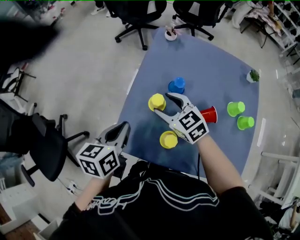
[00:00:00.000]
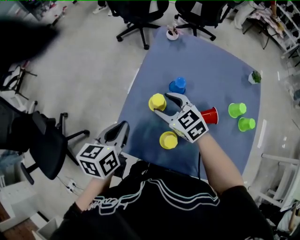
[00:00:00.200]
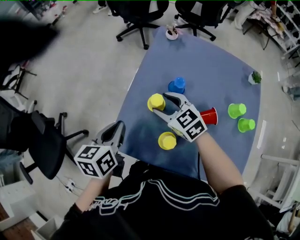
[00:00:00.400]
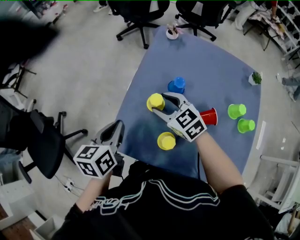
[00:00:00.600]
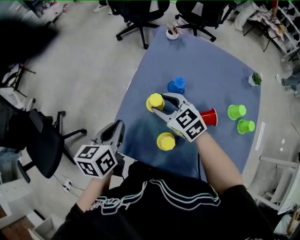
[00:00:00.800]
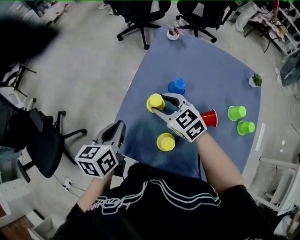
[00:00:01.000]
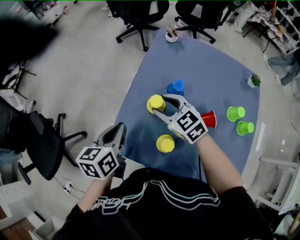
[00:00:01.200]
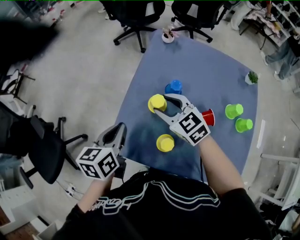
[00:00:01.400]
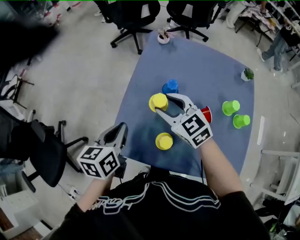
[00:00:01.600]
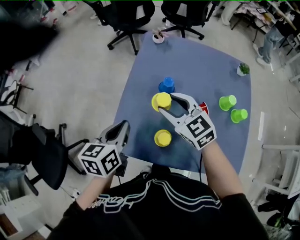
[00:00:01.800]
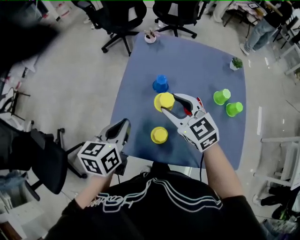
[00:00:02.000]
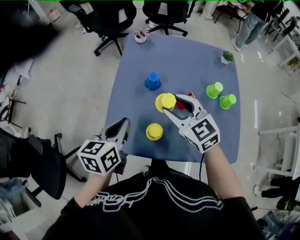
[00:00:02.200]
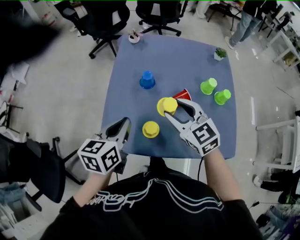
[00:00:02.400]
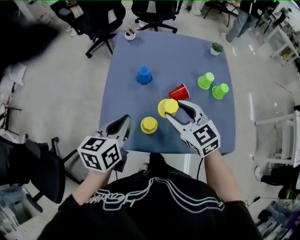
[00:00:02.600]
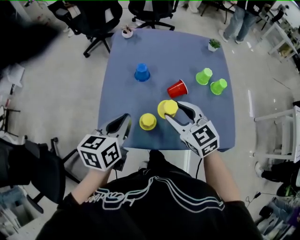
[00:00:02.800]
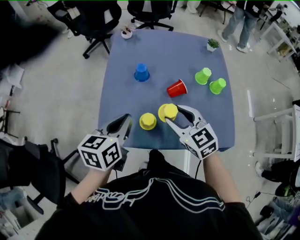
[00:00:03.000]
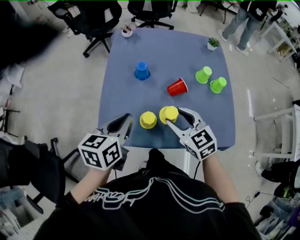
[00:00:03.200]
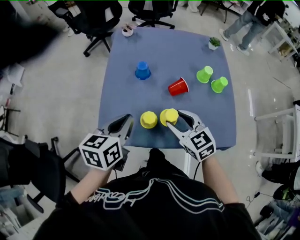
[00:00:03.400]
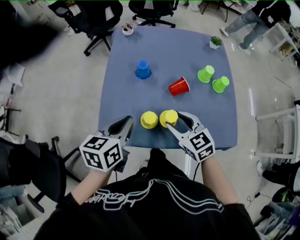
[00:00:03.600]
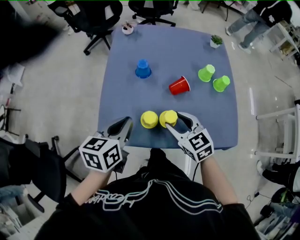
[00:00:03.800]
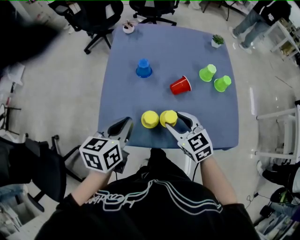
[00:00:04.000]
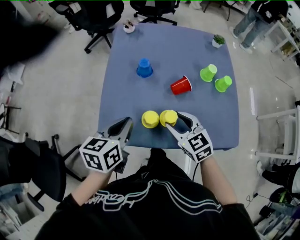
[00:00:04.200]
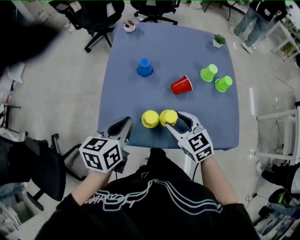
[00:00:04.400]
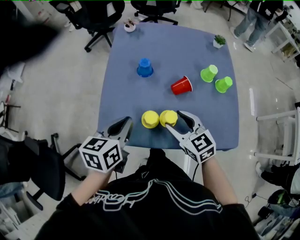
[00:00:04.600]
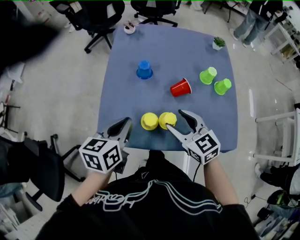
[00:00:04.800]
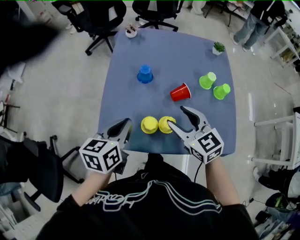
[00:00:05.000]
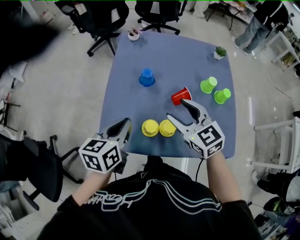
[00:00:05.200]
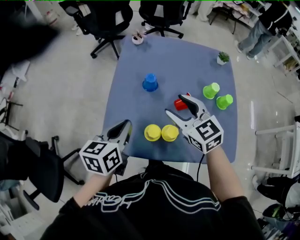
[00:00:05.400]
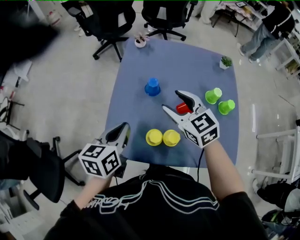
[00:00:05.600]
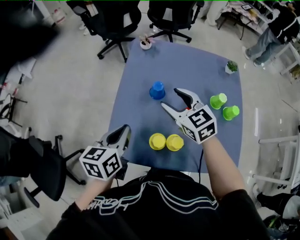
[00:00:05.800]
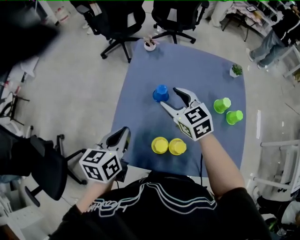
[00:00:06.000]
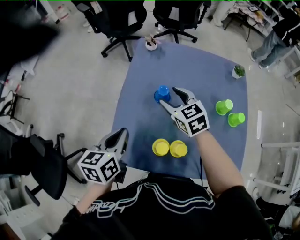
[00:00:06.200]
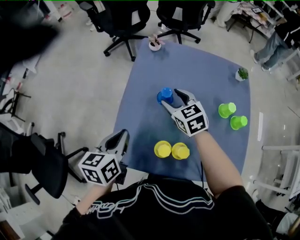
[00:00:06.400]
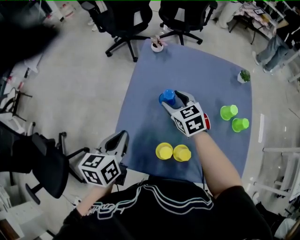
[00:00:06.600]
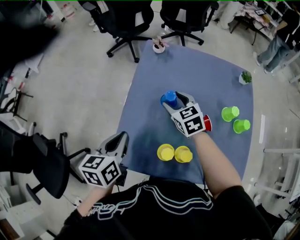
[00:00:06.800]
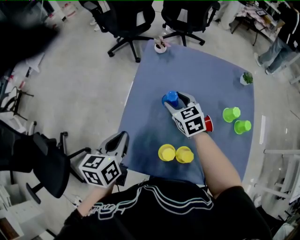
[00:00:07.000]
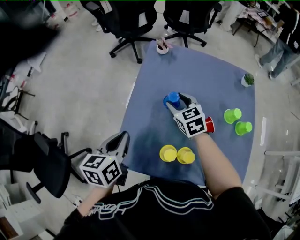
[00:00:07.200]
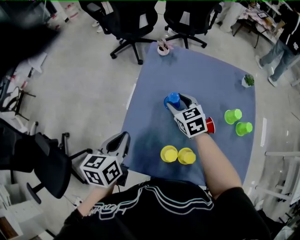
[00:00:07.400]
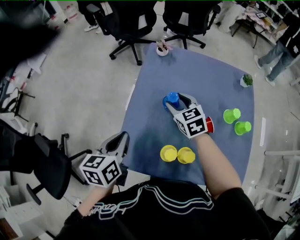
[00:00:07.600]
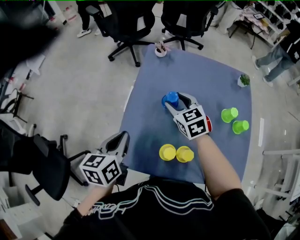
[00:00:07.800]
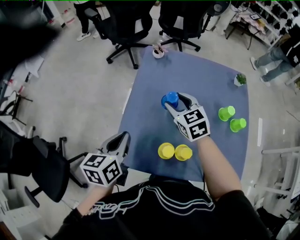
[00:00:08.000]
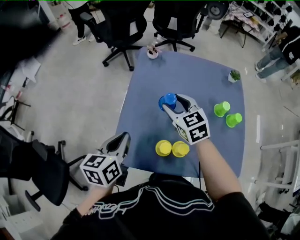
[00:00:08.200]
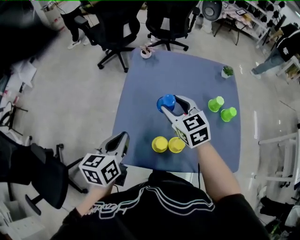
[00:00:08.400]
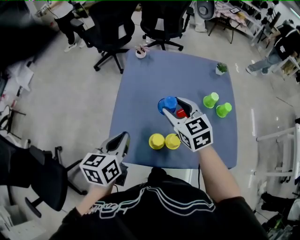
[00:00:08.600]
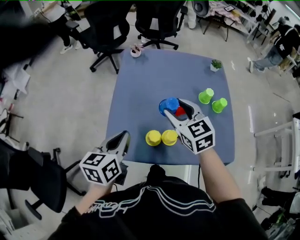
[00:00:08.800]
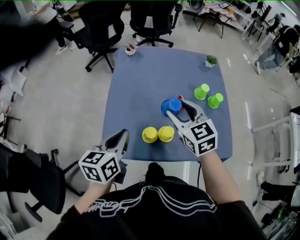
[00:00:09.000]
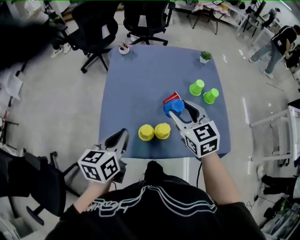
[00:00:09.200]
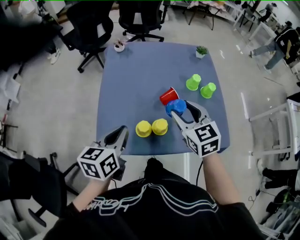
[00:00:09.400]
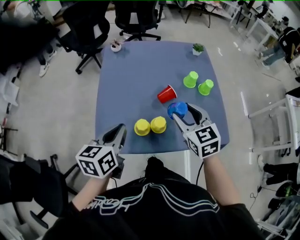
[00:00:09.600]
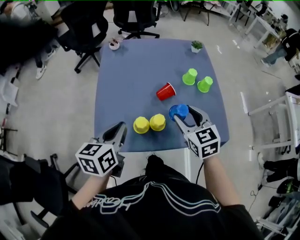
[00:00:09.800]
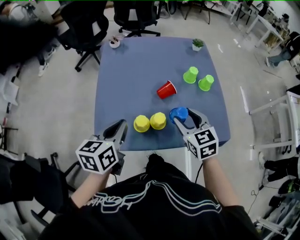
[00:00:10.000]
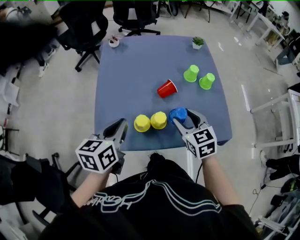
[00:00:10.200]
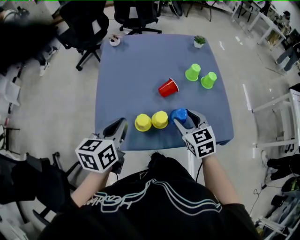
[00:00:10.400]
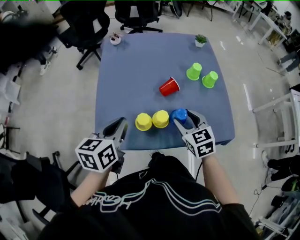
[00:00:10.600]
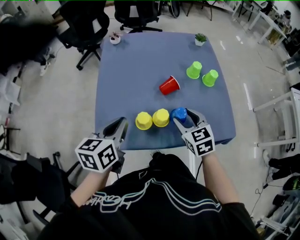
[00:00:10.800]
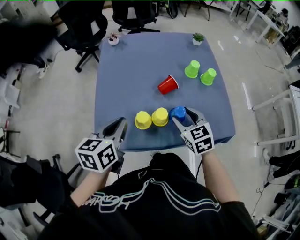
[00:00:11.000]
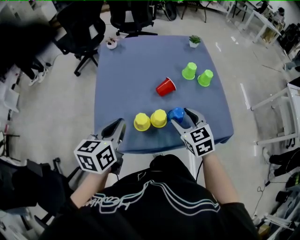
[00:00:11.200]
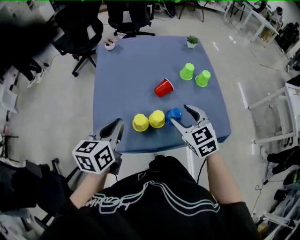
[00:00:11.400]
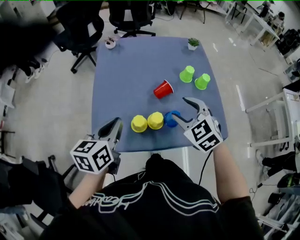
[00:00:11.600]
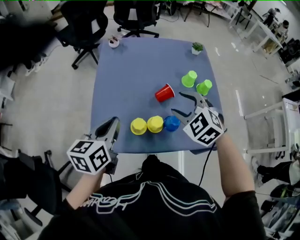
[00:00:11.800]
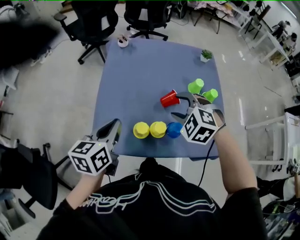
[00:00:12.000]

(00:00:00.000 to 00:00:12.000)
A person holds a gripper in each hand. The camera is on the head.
00:00:00.000 - 00:00:01.600: There are only small adjustments of the grippers.
00:00:01.600 - 00:00:03.000: The left gripper shifts about 10 cm to the right and backward, and turns by some 20 degrees. Meanwhile the right gripper heads backward and to the right, covering some 20 cm, and changes its angle by roughly 20 degrees.
00:00:03.000 - 00:00:04.400: The right gripper moves downward, roughly 5 cm.
00:00:04.400 - 00:00:06.000: The right gripper heads forward, covering some 20 cm. The left gripper is displaced forward and to the left by some 10 cm.
00:00:06.000 - 00:00:07.600: The right gripper shifts approximately 10 cm downward and forward.
00:00:07.600 - 00:00:09.000: The left gripper goes about 10 cm to the right and backward; the right gripper heads backward, upward and to the right, covering approximately 20 cm.
00:00:09.000 - 00:00:10.400: The right gripper travels downward, to the right and backward by some 15 cm.
00:00:10.400 - 00:00:12.000: The right gripper heads forward and upward, covering about 10 cm, and twists about 50 degrees counterclockwise, seen from behind.

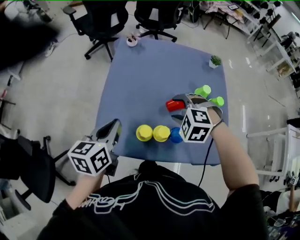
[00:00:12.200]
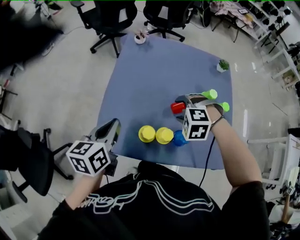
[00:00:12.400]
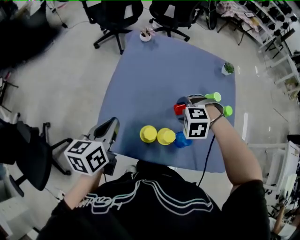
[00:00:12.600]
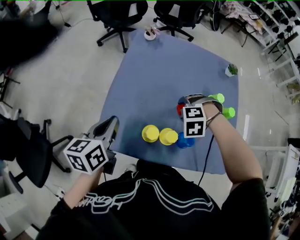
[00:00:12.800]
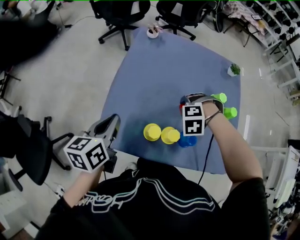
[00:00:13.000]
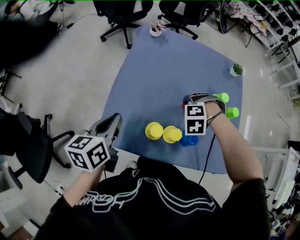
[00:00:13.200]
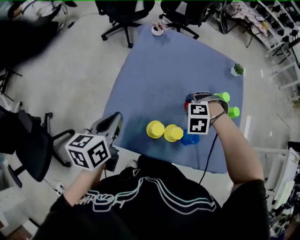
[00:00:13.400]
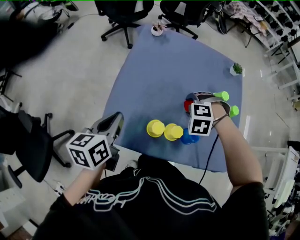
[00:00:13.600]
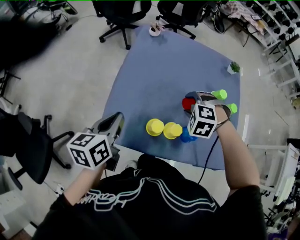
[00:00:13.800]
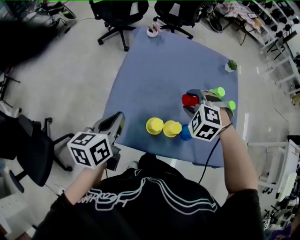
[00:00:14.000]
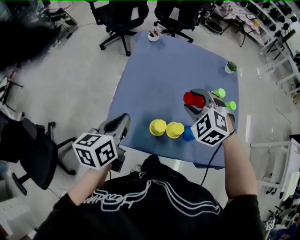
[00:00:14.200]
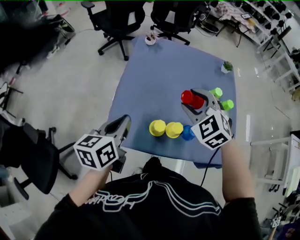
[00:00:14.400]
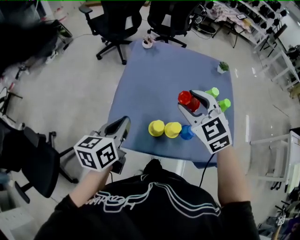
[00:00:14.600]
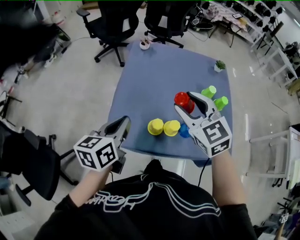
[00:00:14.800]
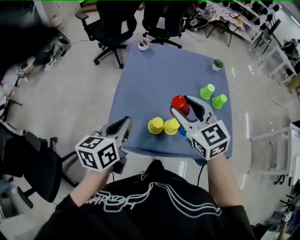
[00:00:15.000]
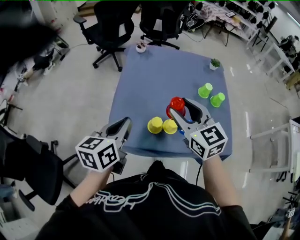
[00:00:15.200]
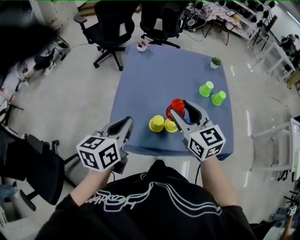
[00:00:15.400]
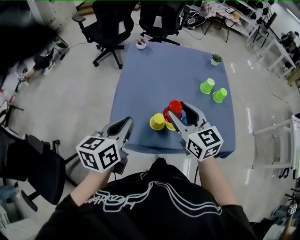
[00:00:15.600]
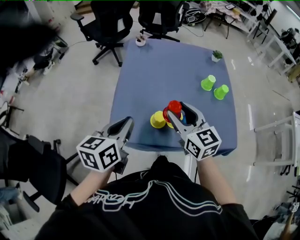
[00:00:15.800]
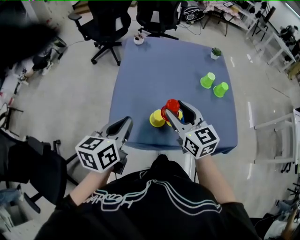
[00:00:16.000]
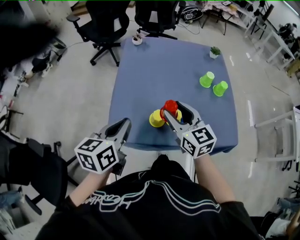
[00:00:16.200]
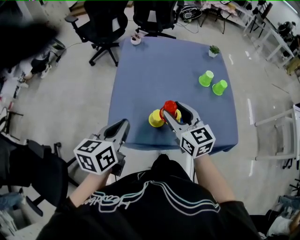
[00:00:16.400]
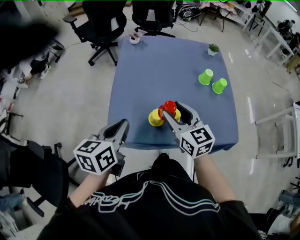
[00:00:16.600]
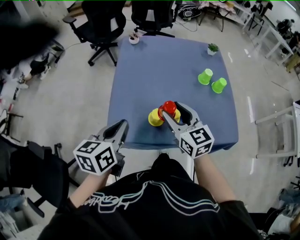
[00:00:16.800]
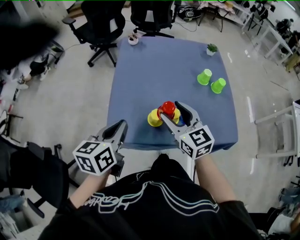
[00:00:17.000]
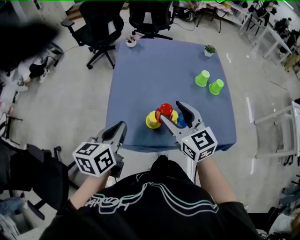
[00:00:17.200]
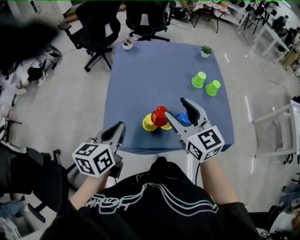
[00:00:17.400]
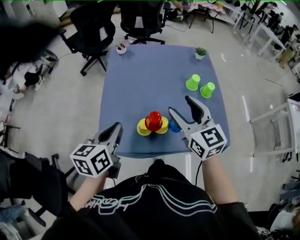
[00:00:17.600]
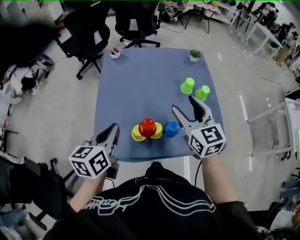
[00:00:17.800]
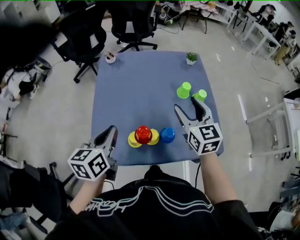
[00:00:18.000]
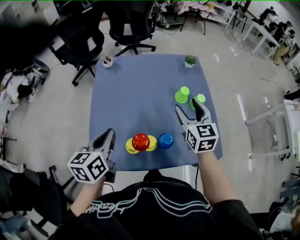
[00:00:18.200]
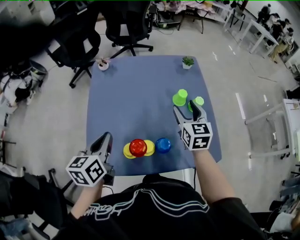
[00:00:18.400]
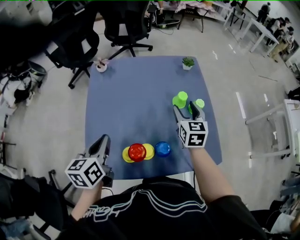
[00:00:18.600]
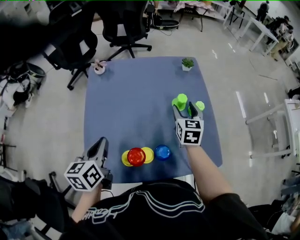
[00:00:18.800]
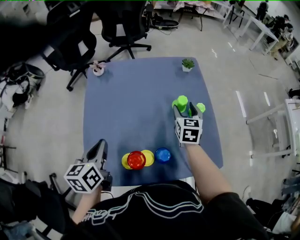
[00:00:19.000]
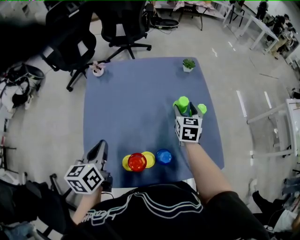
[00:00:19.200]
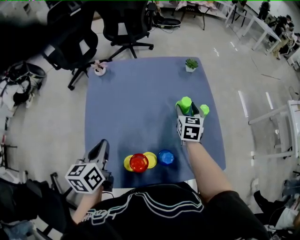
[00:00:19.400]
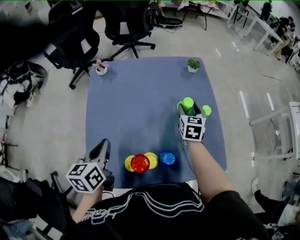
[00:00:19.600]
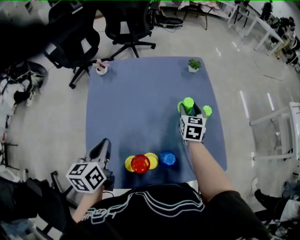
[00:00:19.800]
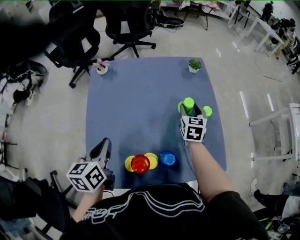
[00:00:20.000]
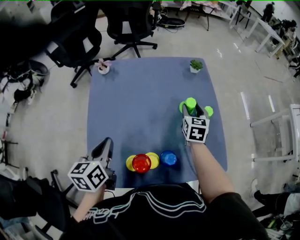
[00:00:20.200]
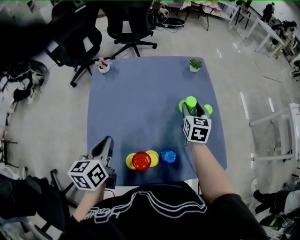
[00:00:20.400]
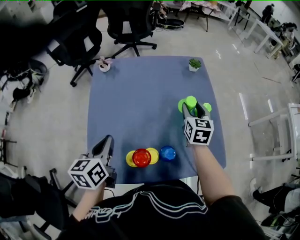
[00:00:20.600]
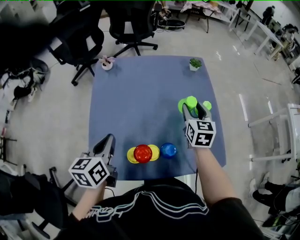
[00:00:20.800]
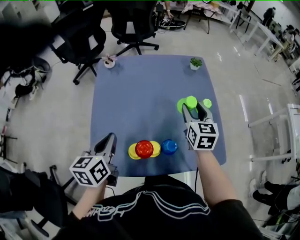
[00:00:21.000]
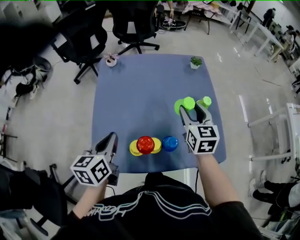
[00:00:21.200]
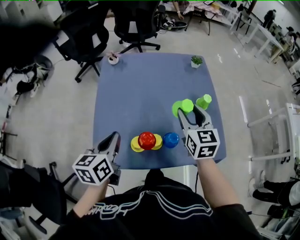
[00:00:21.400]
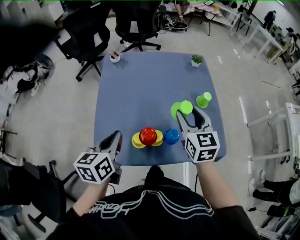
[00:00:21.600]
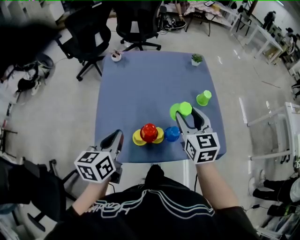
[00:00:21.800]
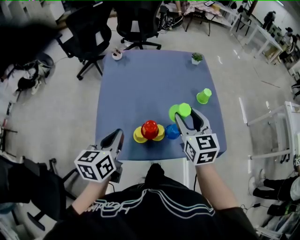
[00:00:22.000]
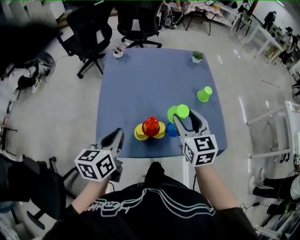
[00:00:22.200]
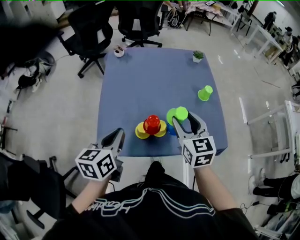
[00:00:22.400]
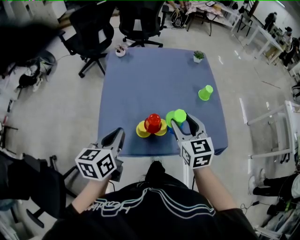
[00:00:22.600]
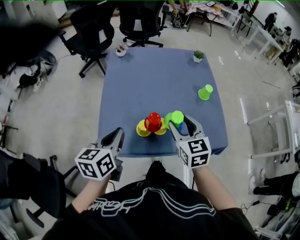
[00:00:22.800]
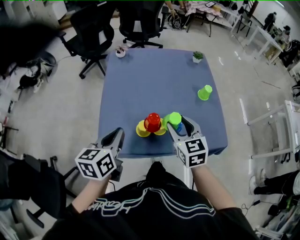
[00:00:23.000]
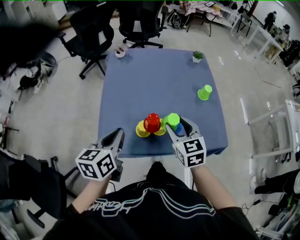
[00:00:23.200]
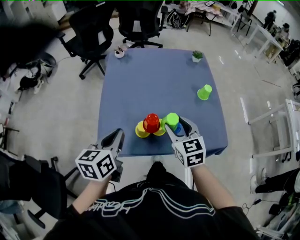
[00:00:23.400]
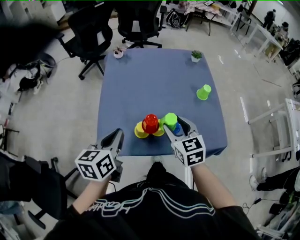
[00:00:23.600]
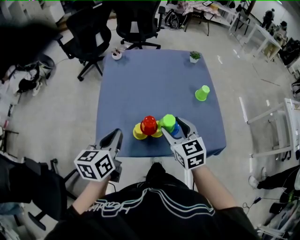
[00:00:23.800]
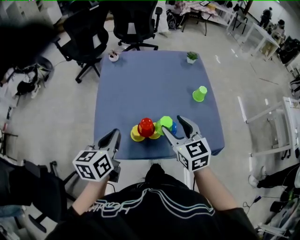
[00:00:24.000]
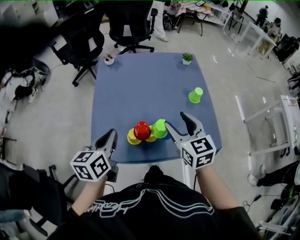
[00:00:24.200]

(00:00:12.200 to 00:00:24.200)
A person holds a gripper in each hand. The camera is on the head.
00:00:12.200 - 00:00:13.800: The left gripper changes place by some 5 cm.
00:00:13.800 - 00:00:15.200: The right gripper moves upward and backward, about 20 cm, and tips its fingers upward by roughly 50 degrees; the left gripper goes roughly 5 cm upward.
00:00:15.200 - 00:00:16.600: The right gripper heads downward, covering approximately 10 cm.
00:00:16.600 - 00:00:18.200: The right gripper shifts approximately 20 cm to the right and forward, and turns by about 20 degrees, while the left gripper is displaced forward and to the right by approximately 10 cm.
00:00:18.200 - 00:00:19.800: The left gripper shifts about 5 cm forward. The right gripper goes approximately 20 cm forward and downward, and turns by roughly 20 degrees.
00:00:19.800 - 00:00:21.200: The right gripper travels backward and upward by roughly 15 cm. The left gripper shifts roughly 5 cm backward.
00:00:21.200 - 00:00:22.600: The right gripper shifts approximately 15 cm backward and to the left, while the left gripper shifts some 10 cm backward.
00:00:22.600 - 00:00:24.200: There are only small adjustments of the grippers.
